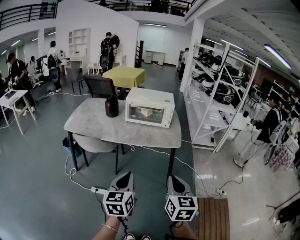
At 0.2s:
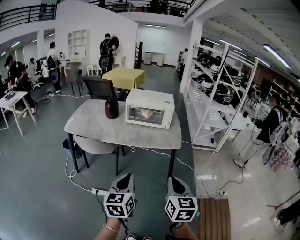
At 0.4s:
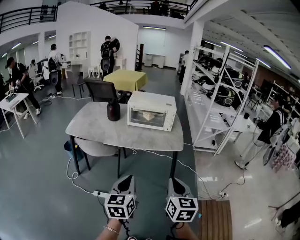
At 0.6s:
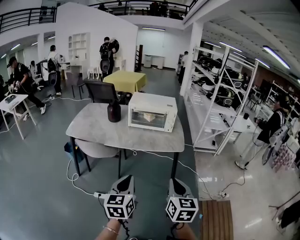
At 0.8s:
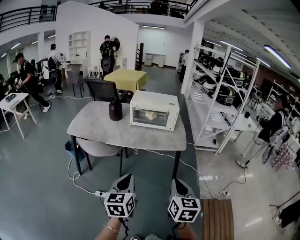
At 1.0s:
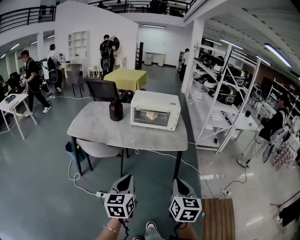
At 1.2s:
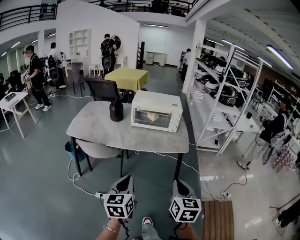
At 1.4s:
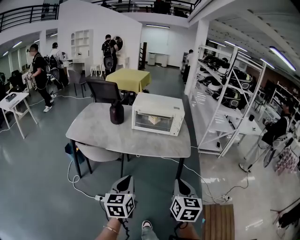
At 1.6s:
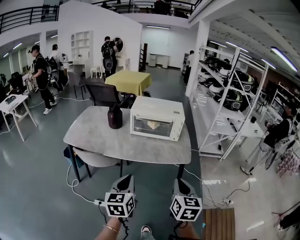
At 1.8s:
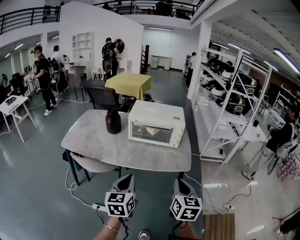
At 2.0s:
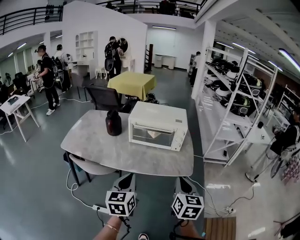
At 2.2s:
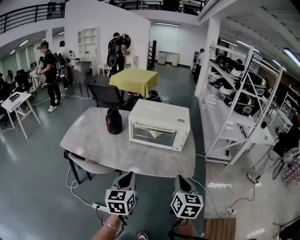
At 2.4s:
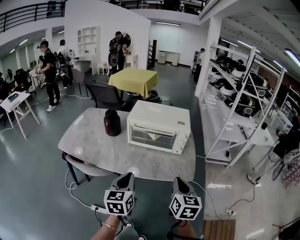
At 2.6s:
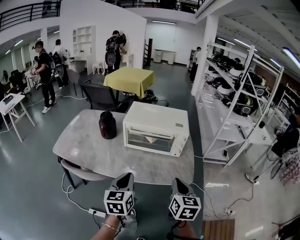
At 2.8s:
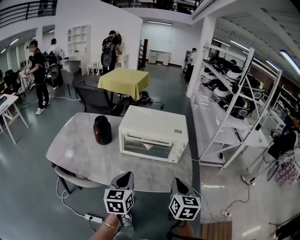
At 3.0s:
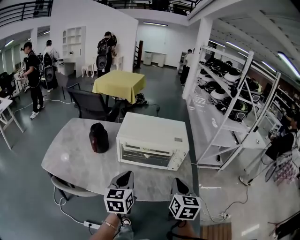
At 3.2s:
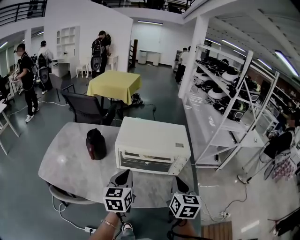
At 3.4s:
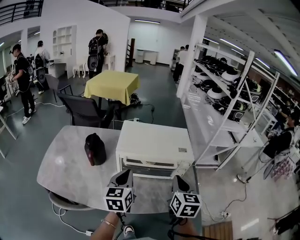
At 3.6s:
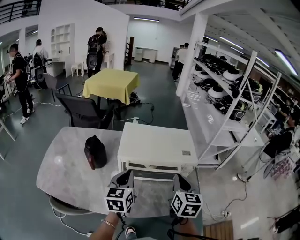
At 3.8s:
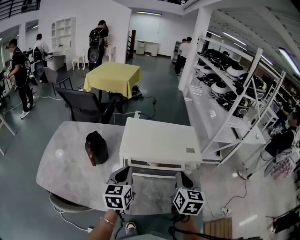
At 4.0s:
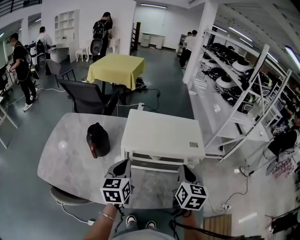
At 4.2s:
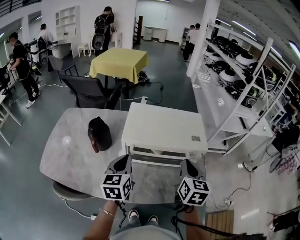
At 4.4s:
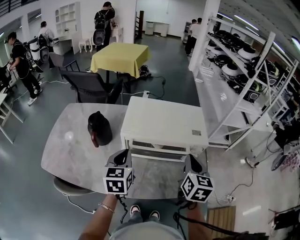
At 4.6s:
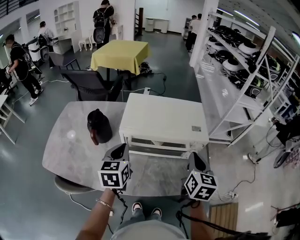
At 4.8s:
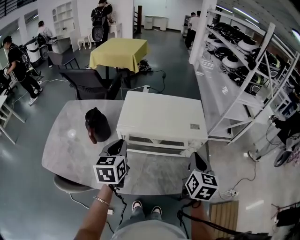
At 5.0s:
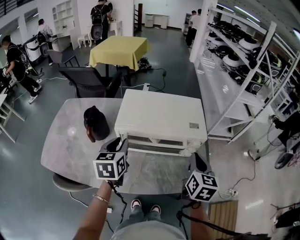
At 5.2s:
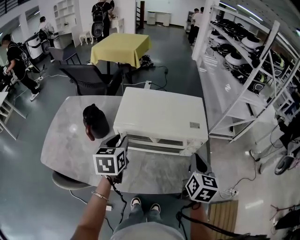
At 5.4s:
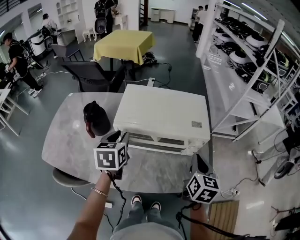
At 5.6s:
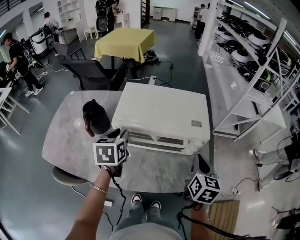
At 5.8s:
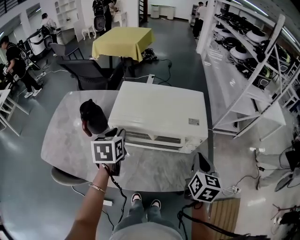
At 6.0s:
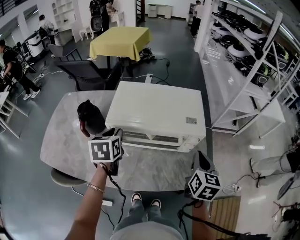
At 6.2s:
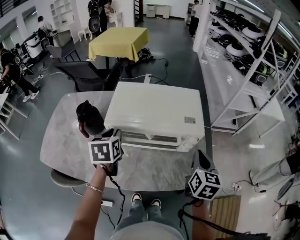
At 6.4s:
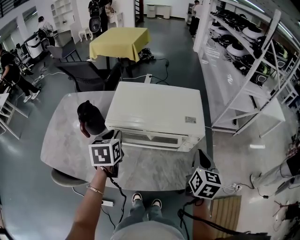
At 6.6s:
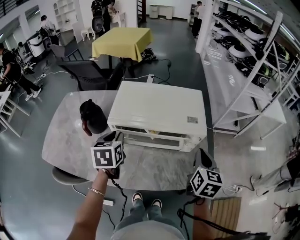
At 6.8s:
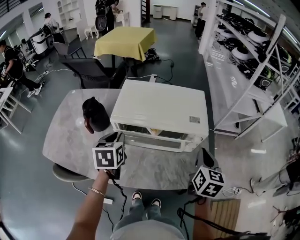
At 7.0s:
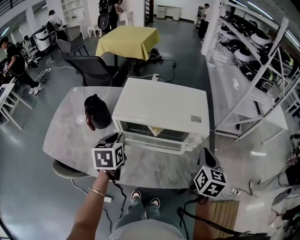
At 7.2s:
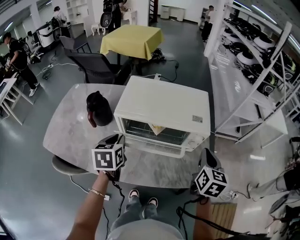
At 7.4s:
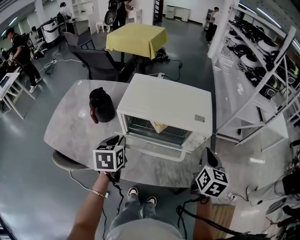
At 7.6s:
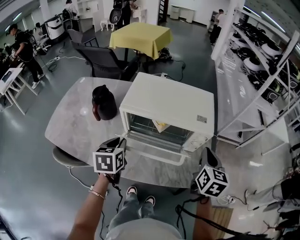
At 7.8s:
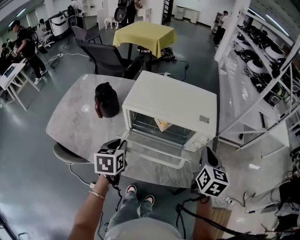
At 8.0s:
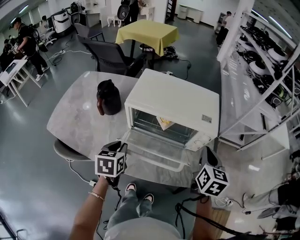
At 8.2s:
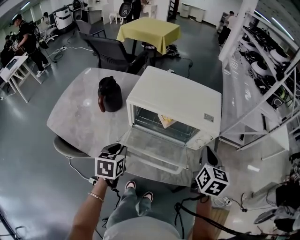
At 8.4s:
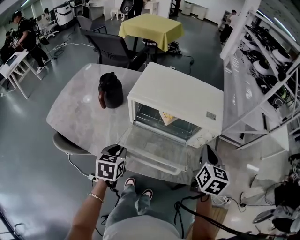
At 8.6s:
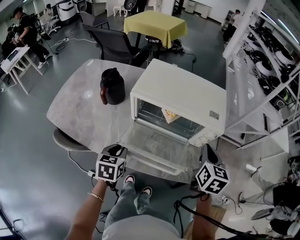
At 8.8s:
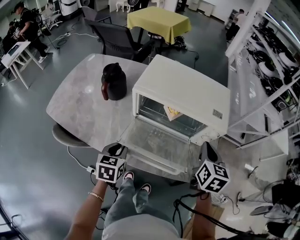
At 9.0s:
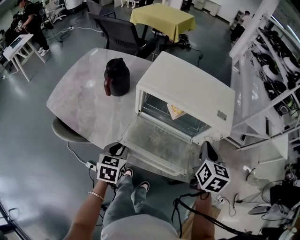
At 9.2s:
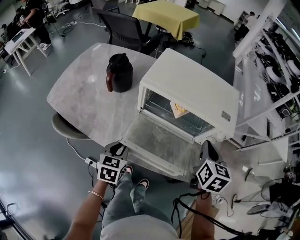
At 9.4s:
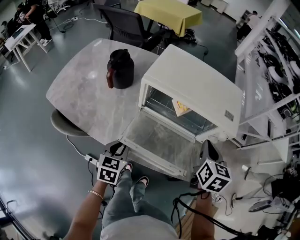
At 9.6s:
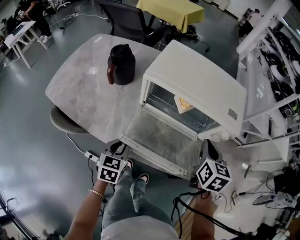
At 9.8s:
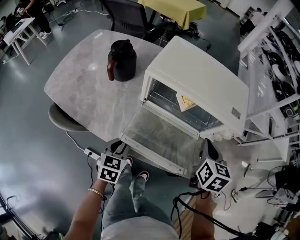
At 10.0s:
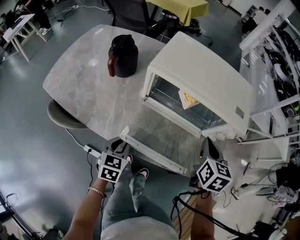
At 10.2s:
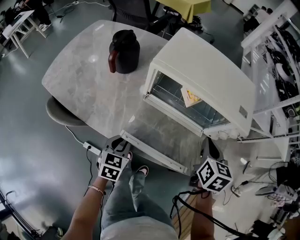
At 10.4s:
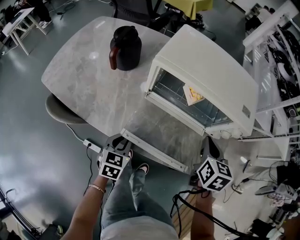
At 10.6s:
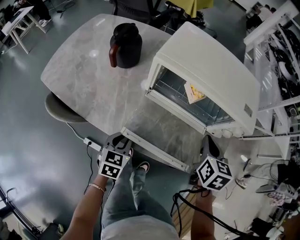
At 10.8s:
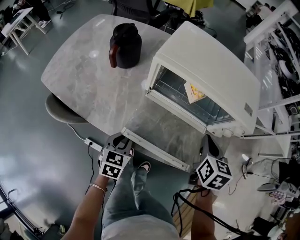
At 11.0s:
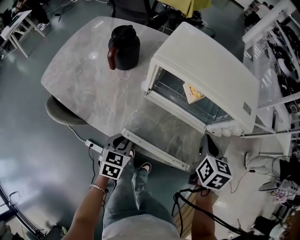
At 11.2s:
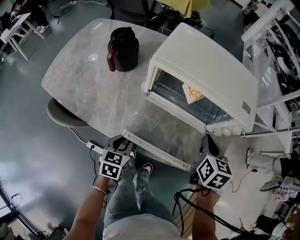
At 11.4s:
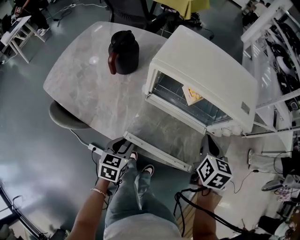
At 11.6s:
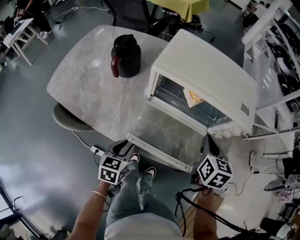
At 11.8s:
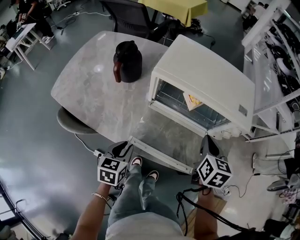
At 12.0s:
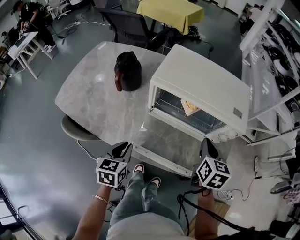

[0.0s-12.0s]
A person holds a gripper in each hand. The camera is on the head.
0.0s to 1.6s: Both grippers move forward, roughly 15 cm.
1.6s to 3.0s: Both grippers travel together forward, approximately 30 cm.
3.0s to 4.4s: The left gripper heads forward and to the left, covering approximately 15 cm. Meanwhile the right gripper heads forward, covering approximately 15 cm.
4.4s to 6.0s: The left gripper goes roughly 5 cm forward, and opens. Meanwhile the right gripper is displaced to the right by roughly 10 cm.
6.0s to 7.6s: The left gripper heads backward, covering approximately 10 cm.
7.6s to 9.0s: The left gripper travels downward and backward by about 15 cm; the right gripper is displaced to the left by about 5 cm.
9.0s to 10.4s: The grippers both shift downward by approximately 10 cm.
10.4s to 12.0s: The left gripper travels upward by roughly 10 cm.

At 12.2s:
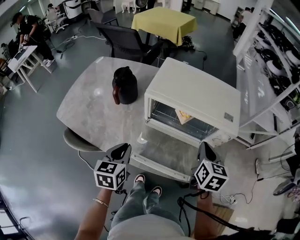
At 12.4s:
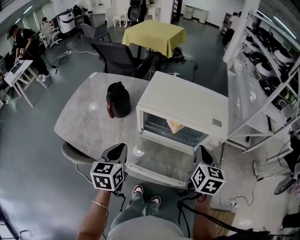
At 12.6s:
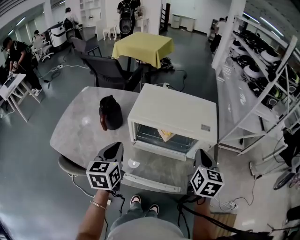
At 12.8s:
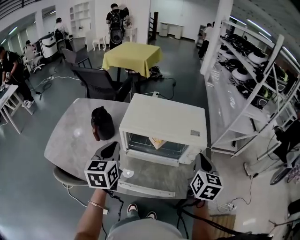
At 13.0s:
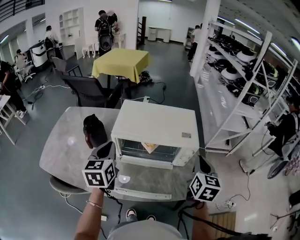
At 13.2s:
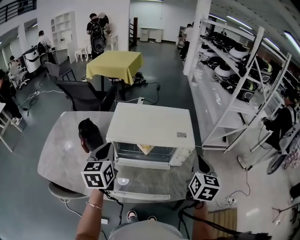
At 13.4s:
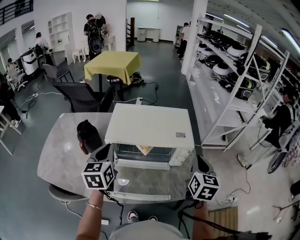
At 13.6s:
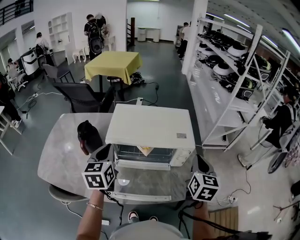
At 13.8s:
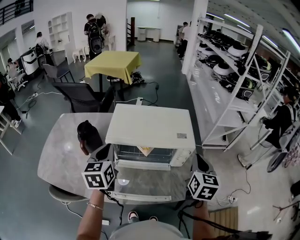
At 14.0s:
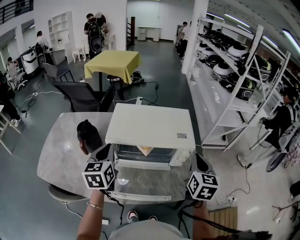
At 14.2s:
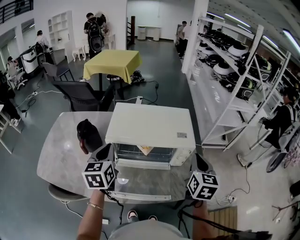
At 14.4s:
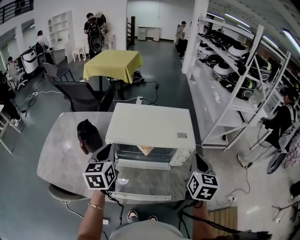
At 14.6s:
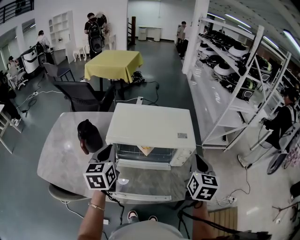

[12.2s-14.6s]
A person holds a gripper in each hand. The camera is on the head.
12.2s to 13.4s: The right gripper shifts approximately 15 cm to the right and upward, and changes its angle by about 20 degrees; the left gripper shifts approximately 20 cm upward and forward.
13.4s to 14.6s: The grippers stay close to where they were, moving slightly.

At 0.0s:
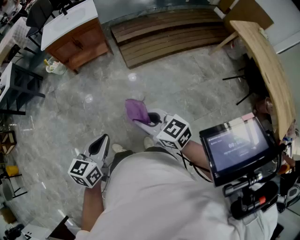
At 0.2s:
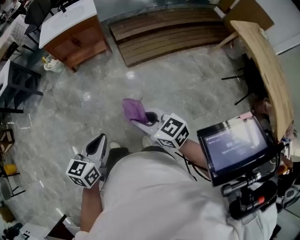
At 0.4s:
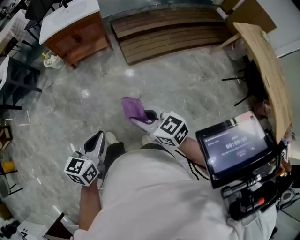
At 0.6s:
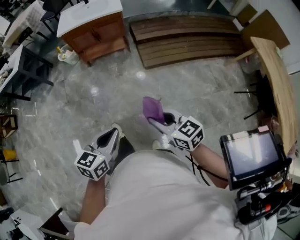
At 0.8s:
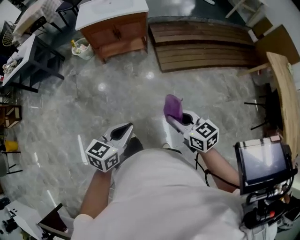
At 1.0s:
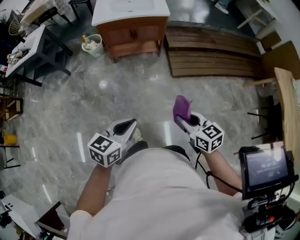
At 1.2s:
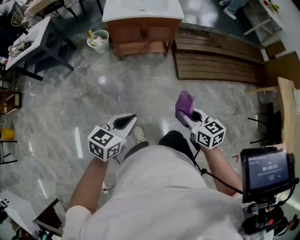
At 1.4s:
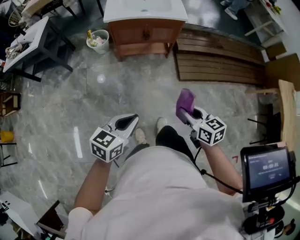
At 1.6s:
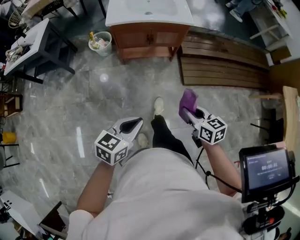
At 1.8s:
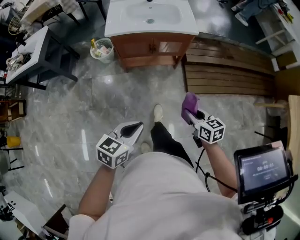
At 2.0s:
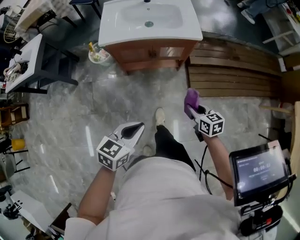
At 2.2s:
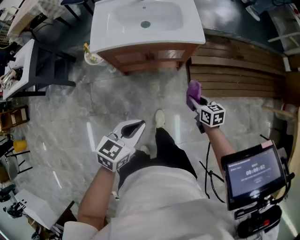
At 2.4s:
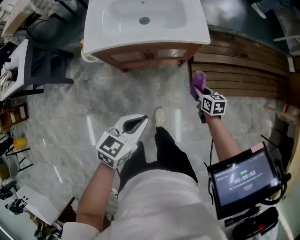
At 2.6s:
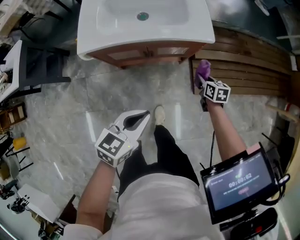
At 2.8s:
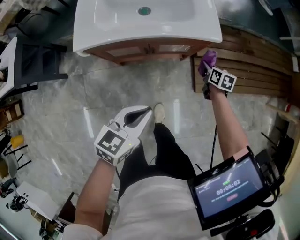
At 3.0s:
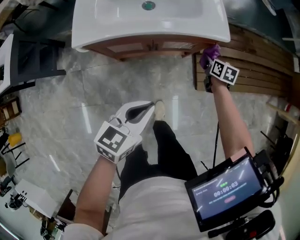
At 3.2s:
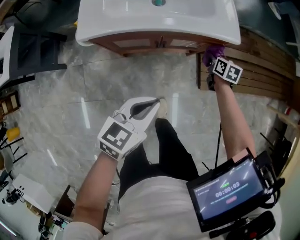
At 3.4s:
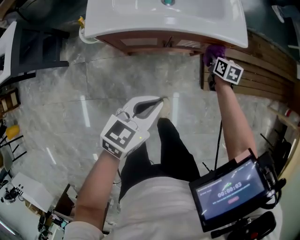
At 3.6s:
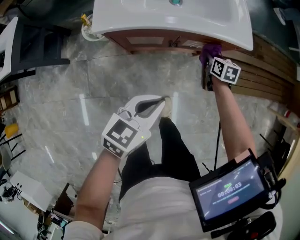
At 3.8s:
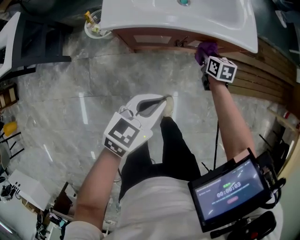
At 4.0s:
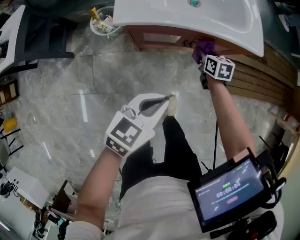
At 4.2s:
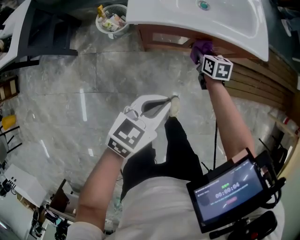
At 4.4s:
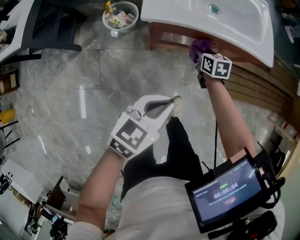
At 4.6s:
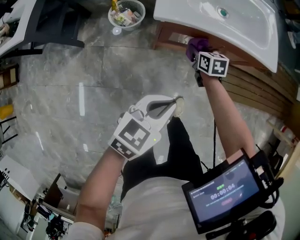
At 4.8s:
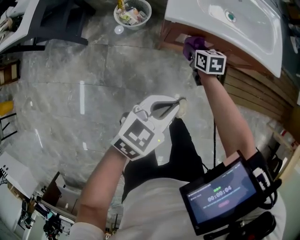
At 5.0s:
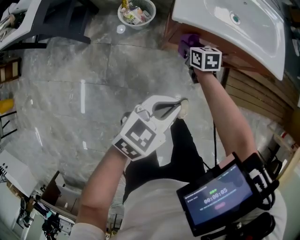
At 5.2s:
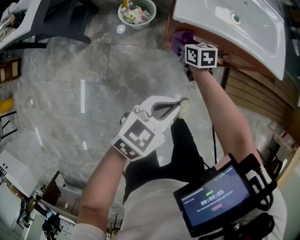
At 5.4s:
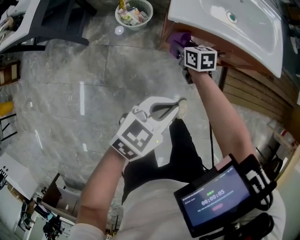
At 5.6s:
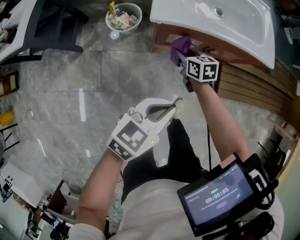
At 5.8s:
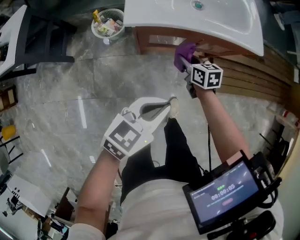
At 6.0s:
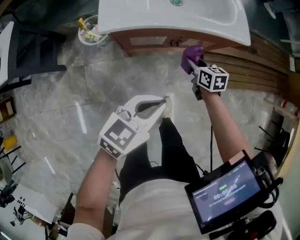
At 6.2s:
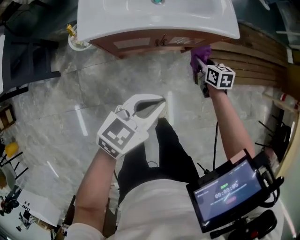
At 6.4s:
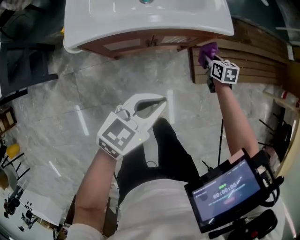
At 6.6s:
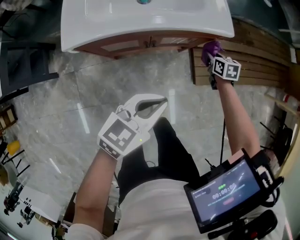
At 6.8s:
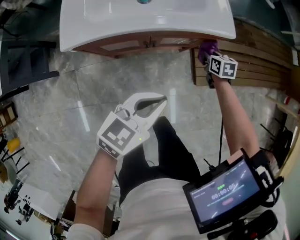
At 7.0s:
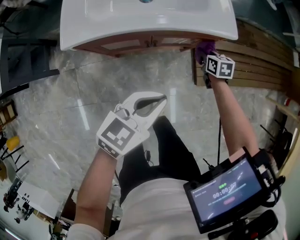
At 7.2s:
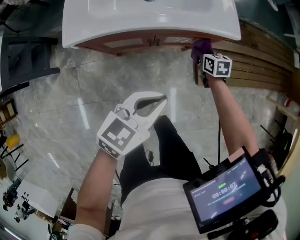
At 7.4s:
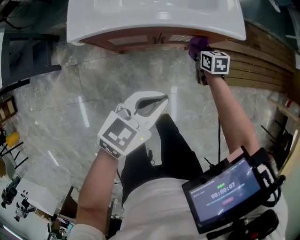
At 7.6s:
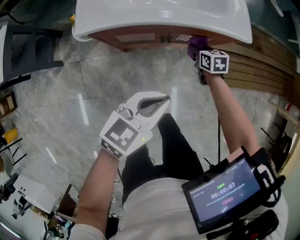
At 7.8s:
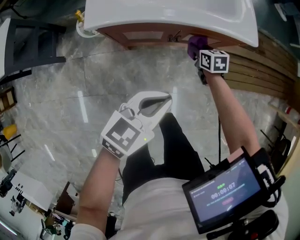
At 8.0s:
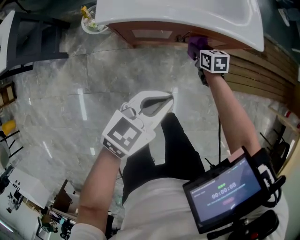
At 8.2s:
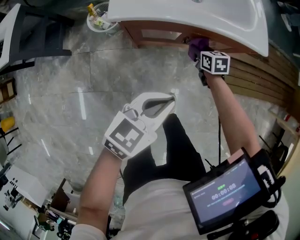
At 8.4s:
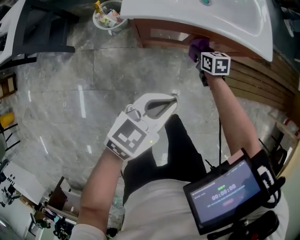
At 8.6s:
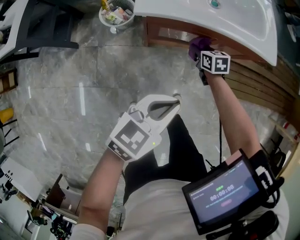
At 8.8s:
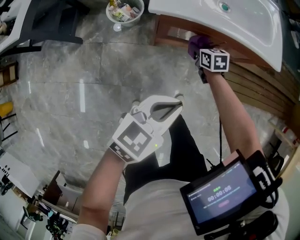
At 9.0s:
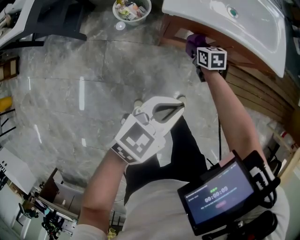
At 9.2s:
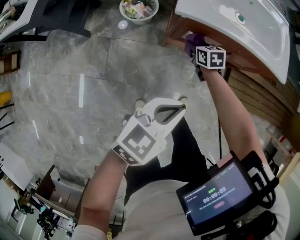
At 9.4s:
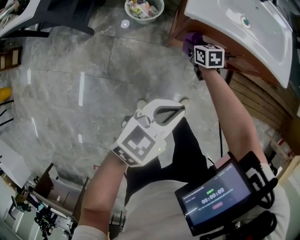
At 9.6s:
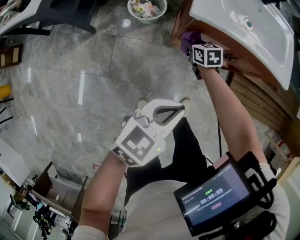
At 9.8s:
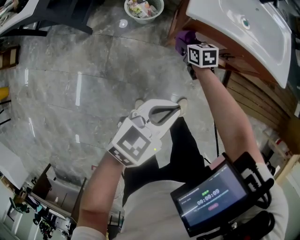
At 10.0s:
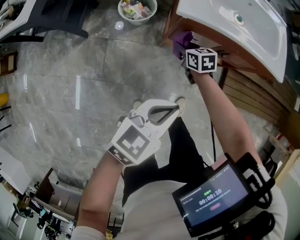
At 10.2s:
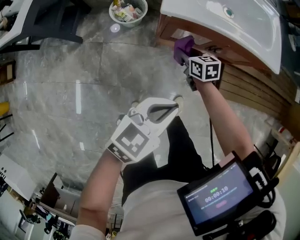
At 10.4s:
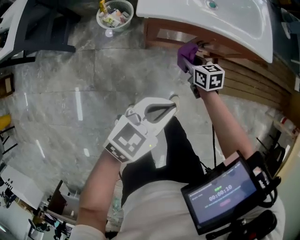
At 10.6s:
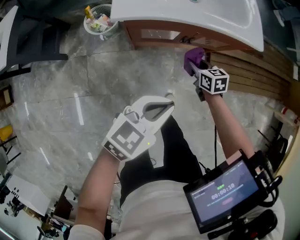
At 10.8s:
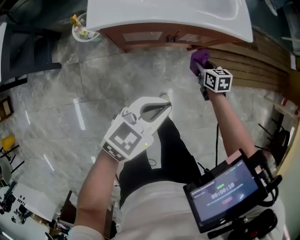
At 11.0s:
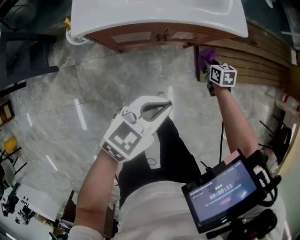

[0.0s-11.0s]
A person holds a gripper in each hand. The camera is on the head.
0.0s to 1.6s: The pair of grippers is taken forward and to the left, roughly 50 cm.
1.6s to 3.2s: Both grippers are carried forward, some 50 cm. The right gripper shifts some 30 cm downward, and swivels about 30 degrees.
3.2s to 4.8s: The left gripper is displaced to the left and backward by roughly 25 cm; the right gripper goes some 40 cm to the left, and rotates approximately 30 degrees.
4.8s to 6.2s: The left gripper heads to the right, covering roughly 15 cm; the right gripper moves to the right, approximately 35 cm.
6.2s to 7.8s: The right gripper shifts some 10 cm to the left and downward.
7.8s to 9.4s: The right gripper moves to the left, approximately 35 cm. The left gripper shifts roughly 20 cm to the left and backward.
9.4s to 11.0s: The left gripper goes roughly 25 cm to the right. Meanwhile the right gripper moves to the right, approximately 50 cm, and swivels approximately 30 degrees.
